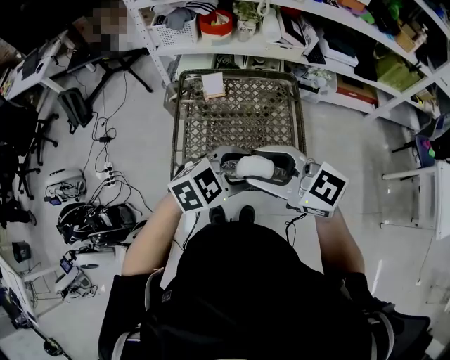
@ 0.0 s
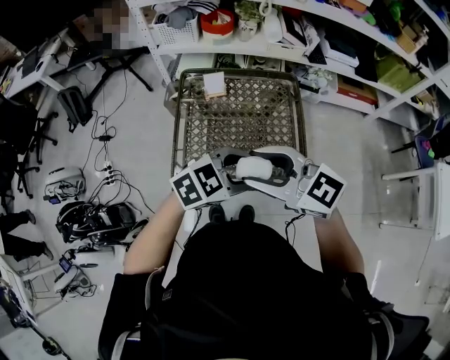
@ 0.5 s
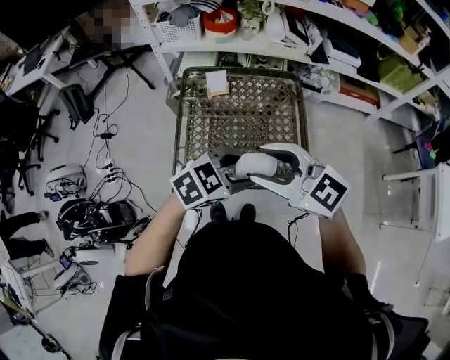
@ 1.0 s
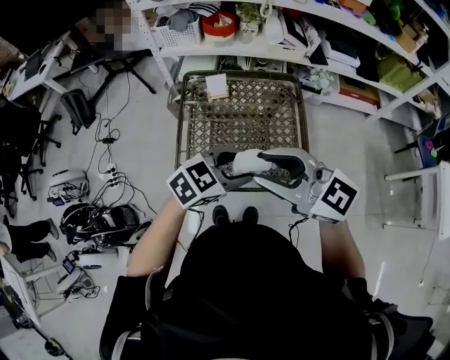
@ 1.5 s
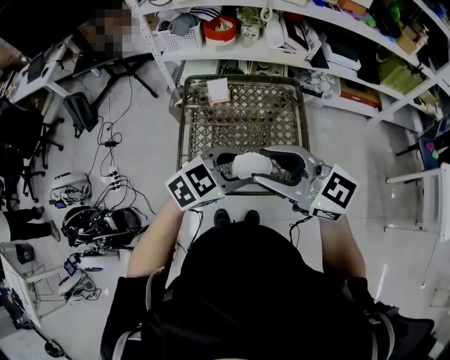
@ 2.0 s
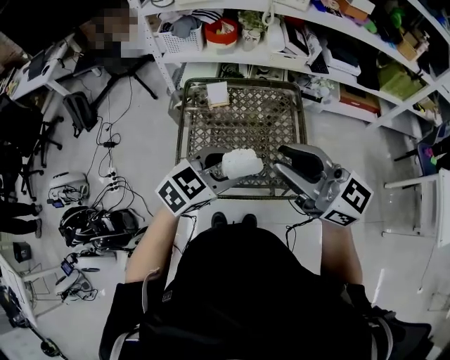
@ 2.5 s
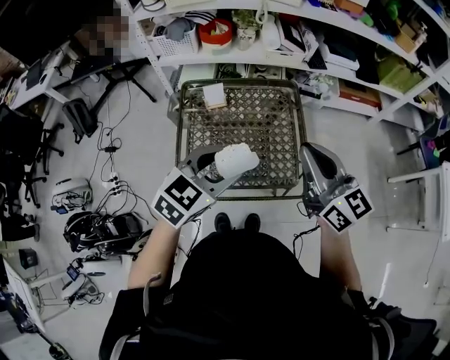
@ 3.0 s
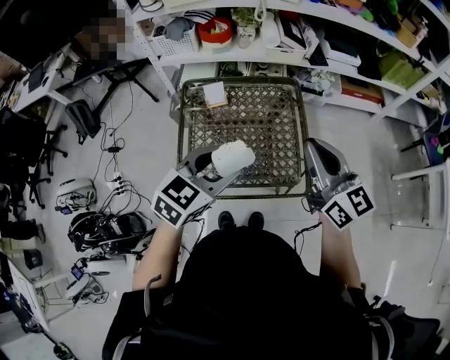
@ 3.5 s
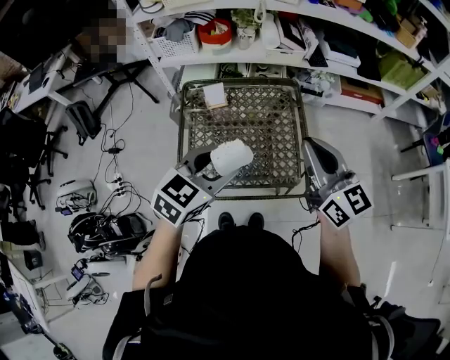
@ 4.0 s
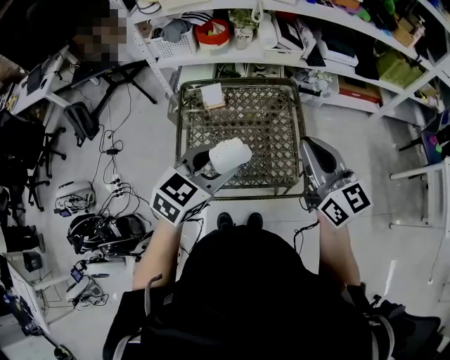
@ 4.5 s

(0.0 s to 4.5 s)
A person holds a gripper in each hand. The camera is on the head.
0.0 s - 2.0 s: The grippers move only a little.
2.0 s - 4.5 s: The left gripper changes place by approximately 5 cm. Meanwhile the right gripper moves roughly 15 cm, turns by some 40 degrees, and closes.

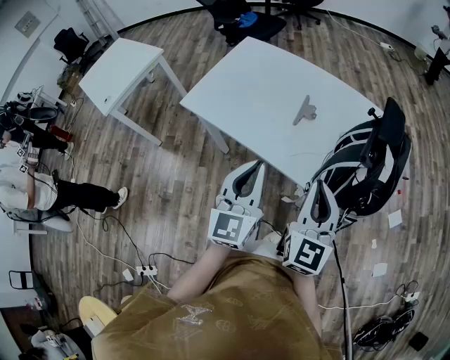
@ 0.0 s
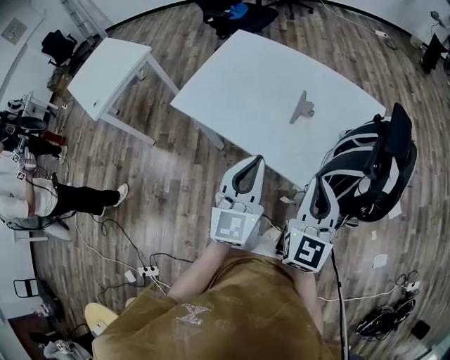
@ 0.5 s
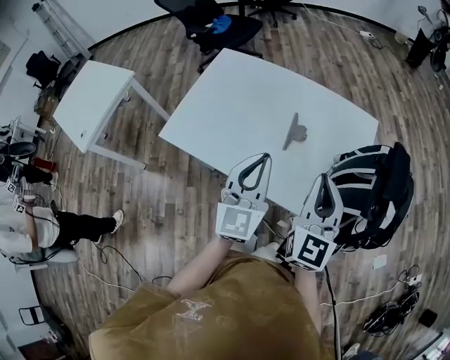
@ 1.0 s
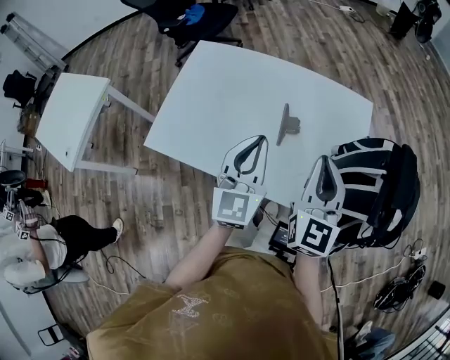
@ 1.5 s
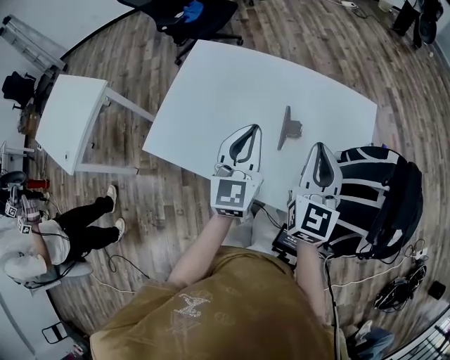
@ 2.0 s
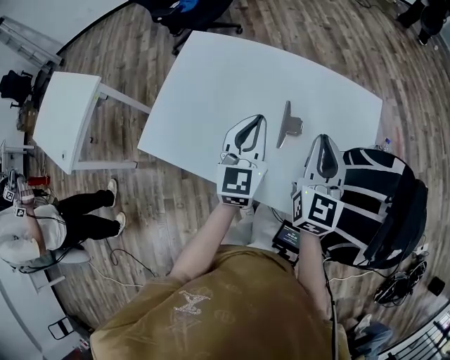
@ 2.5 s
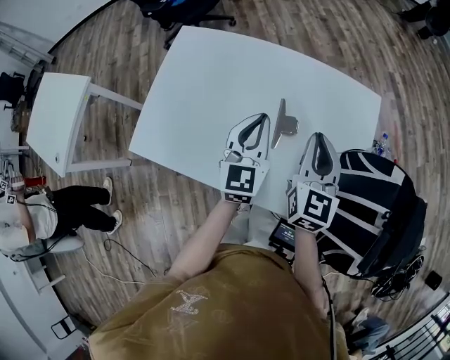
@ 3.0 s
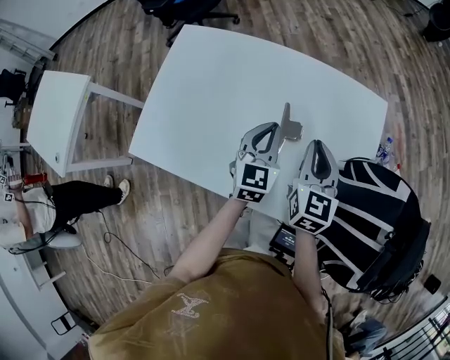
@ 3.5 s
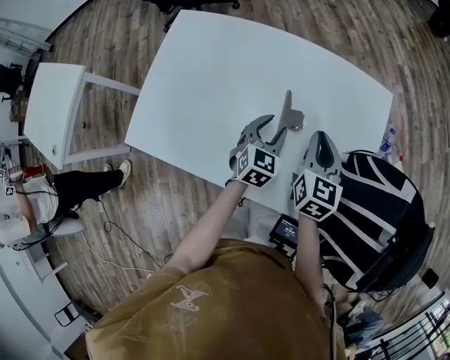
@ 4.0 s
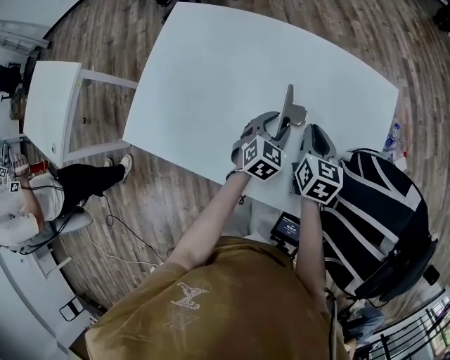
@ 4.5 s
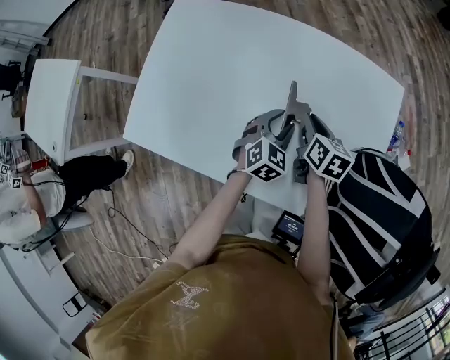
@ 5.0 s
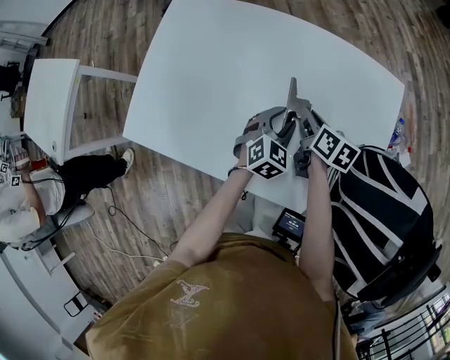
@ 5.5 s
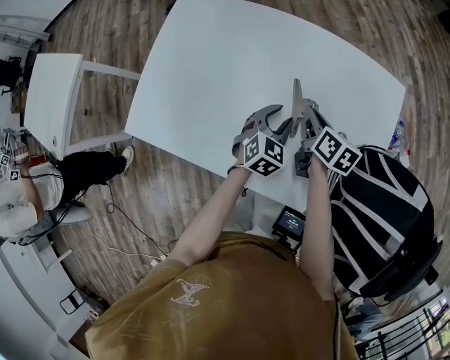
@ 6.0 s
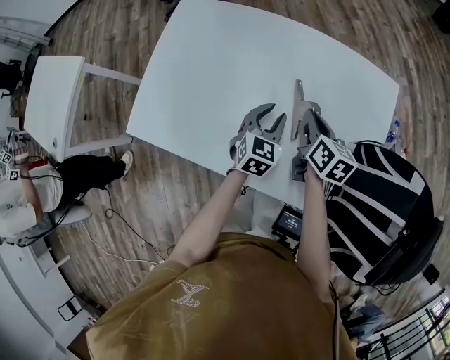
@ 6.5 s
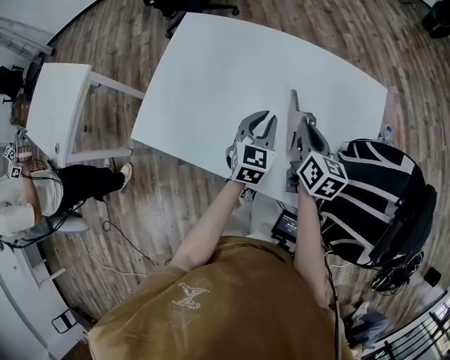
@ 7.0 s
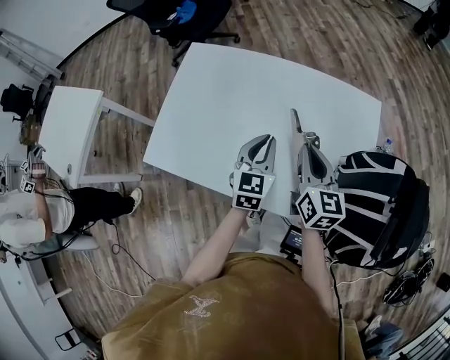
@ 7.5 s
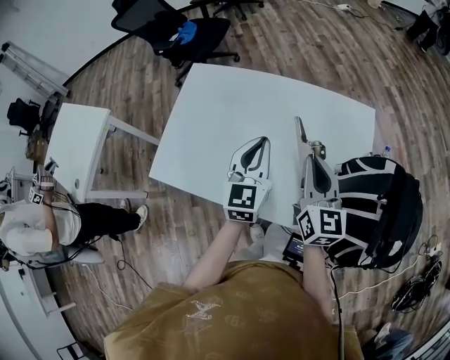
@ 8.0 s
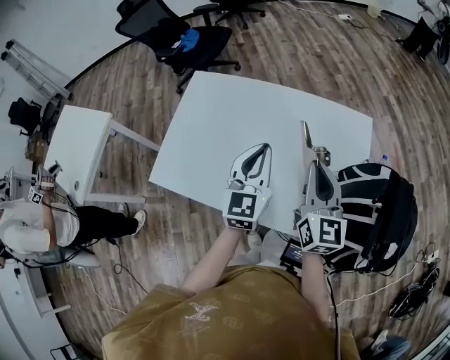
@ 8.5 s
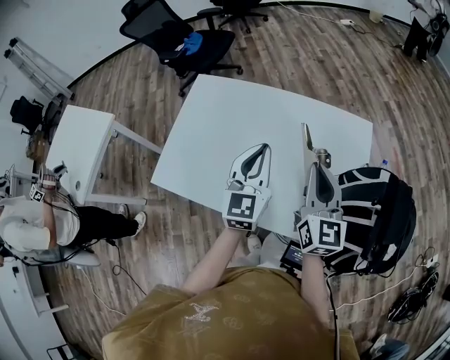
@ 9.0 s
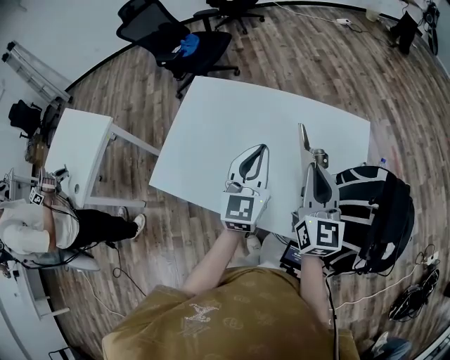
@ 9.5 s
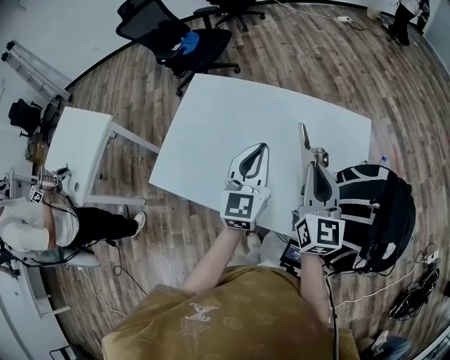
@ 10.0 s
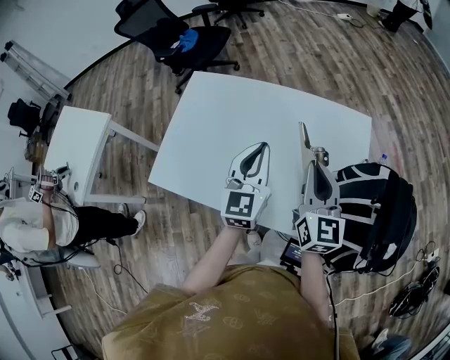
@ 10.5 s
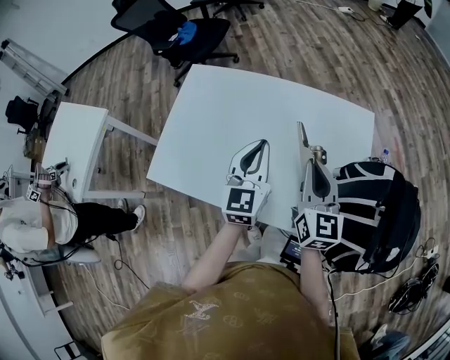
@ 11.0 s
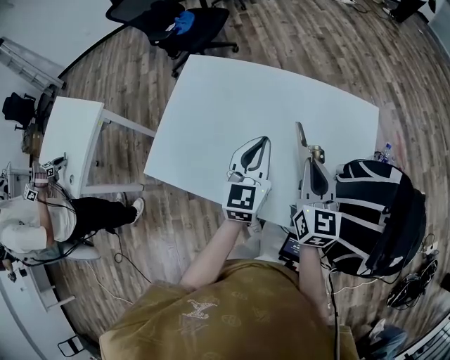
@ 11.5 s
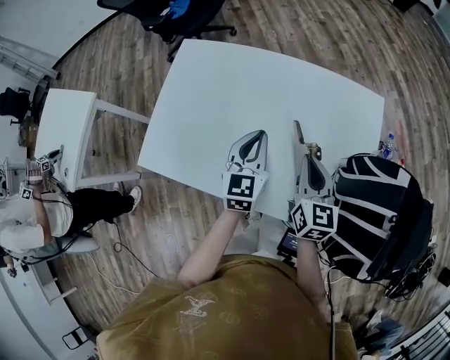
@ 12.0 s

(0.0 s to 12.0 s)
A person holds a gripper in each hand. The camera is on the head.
0.0 s - 2.0 s: The two grippers go roughly 25 cm forward.
2.0 s - 4.0 s: The left gripper shifts some 25 cm downward, rotates roughly 30 degrees, and opens up. The right gripper travels downward and forward by about 20 cm, and swivels roughly 20 degrees.
4.0 s - 6.0 s: The right gripper shifts approximately 10 cm downward, and turns by roughly 40 degrees.
6.0 s - 8.0 s: The left gripper is displaced upward by approximately 25 cm, swivels about 30 degrees, and closes its fingers. Meanwhile the right gripper goes roughly 25 cm upward and backward, and turns by roughly 40 degrees.
8.0 s - 10.0 s: The grippers stay close to where they were, moving slightly.
10.0 s - 12.0 s: Both grippers travel together downward, roughly 15 cm.

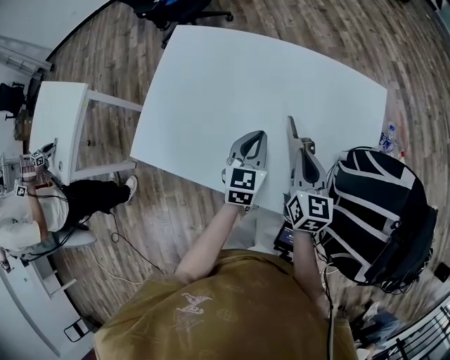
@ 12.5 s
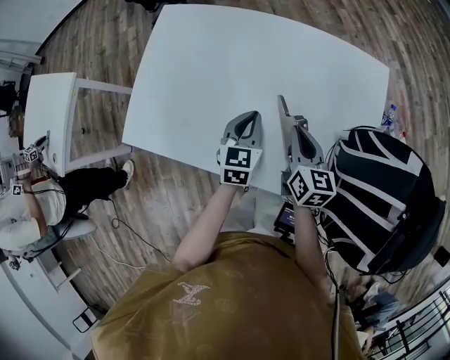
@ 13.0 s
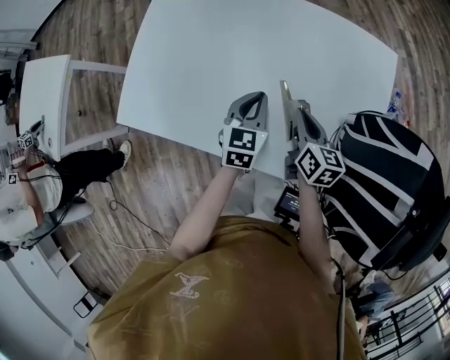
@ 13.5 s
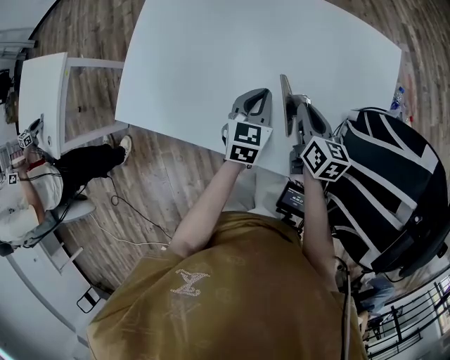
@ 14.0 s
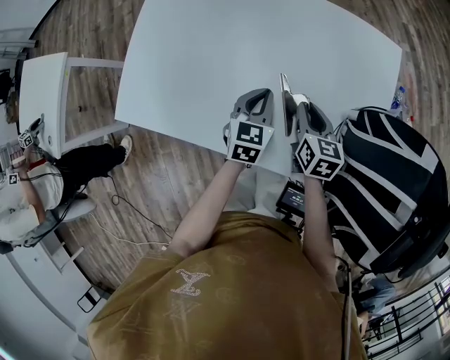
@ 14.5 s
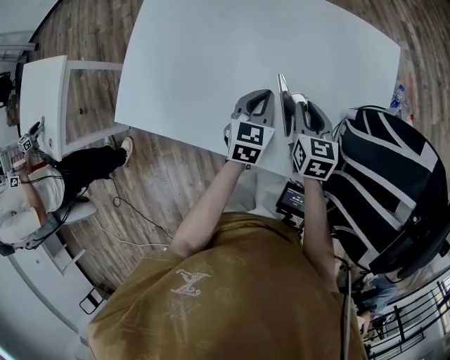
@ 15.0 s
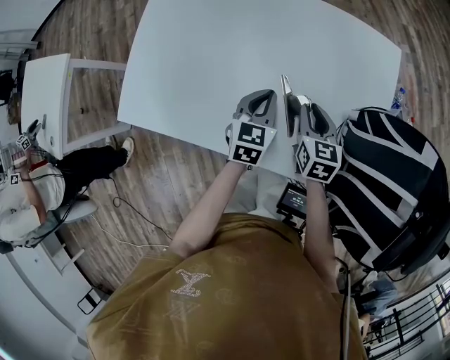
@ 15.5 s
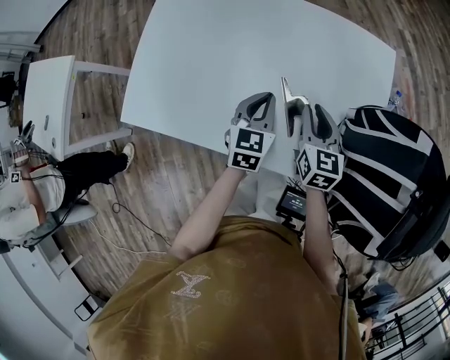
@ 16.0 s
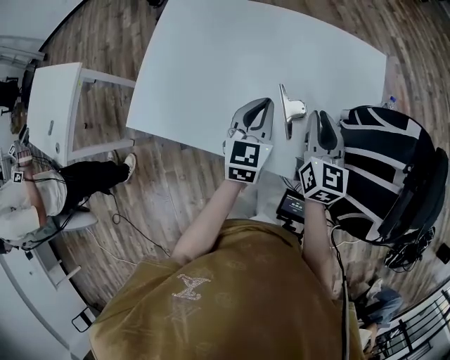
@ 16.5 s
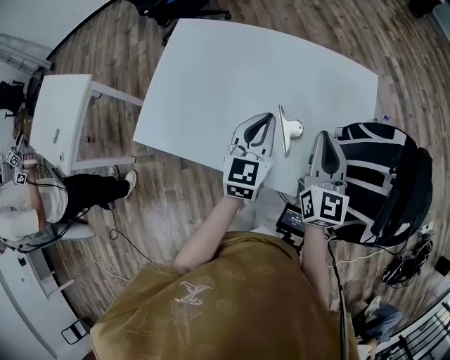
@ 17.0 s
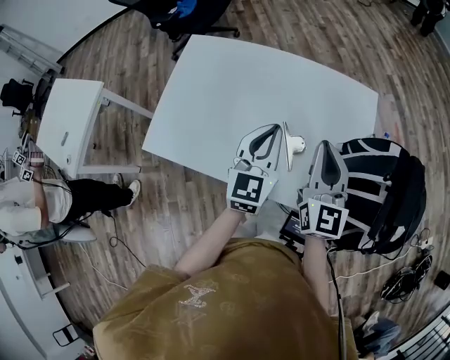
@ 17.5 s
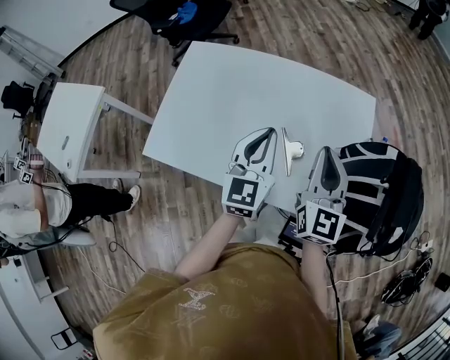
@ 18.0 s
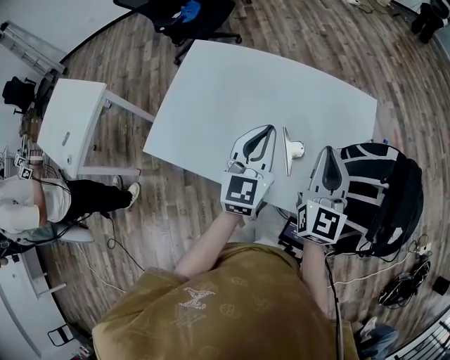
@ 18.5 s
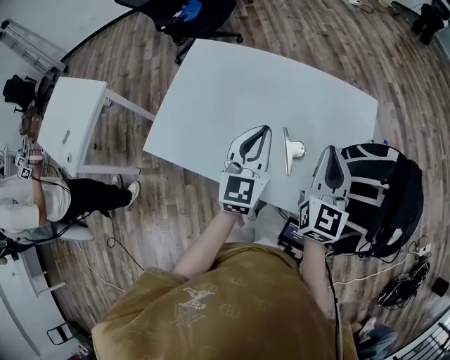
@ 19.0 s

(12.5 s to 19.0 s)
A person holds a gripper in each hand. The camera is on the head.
12.5 s - 14.5 s: The right gripper shifts some 10 cm downward. The left gripper shifts roughly 5 cm downward.
14.5 s - 17.0 s: The two grippers go roughly 20 cm upward. The right gripper changes its angle by about 30 degrees.
17.0 s - 19.0 s: Both grippers move upward, about 5 cm.

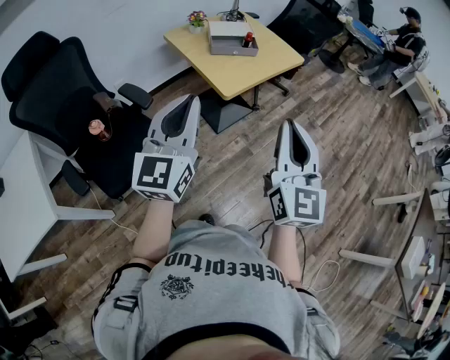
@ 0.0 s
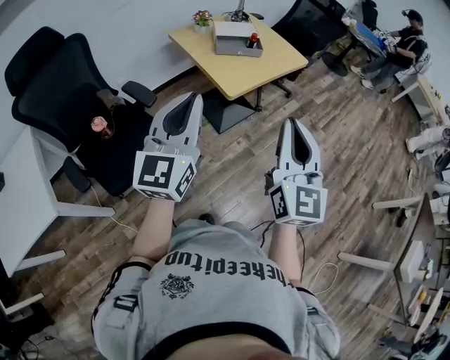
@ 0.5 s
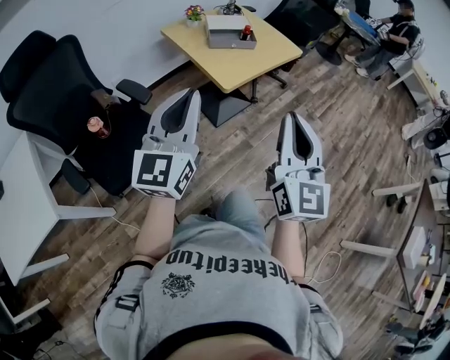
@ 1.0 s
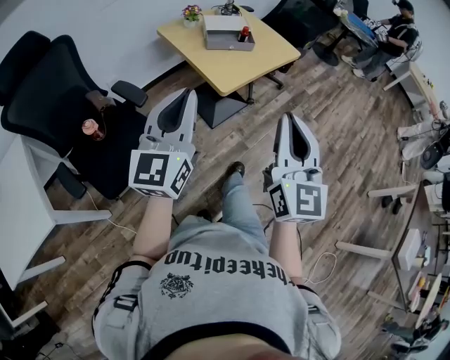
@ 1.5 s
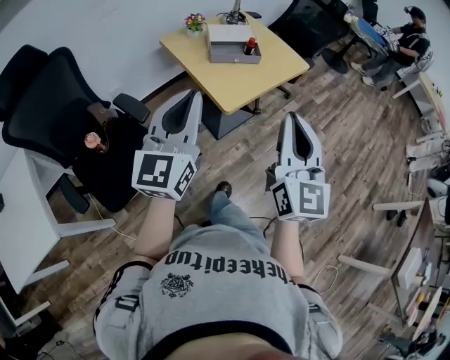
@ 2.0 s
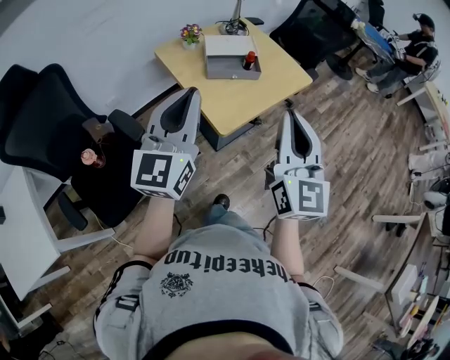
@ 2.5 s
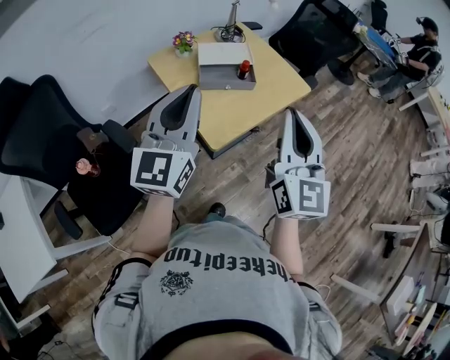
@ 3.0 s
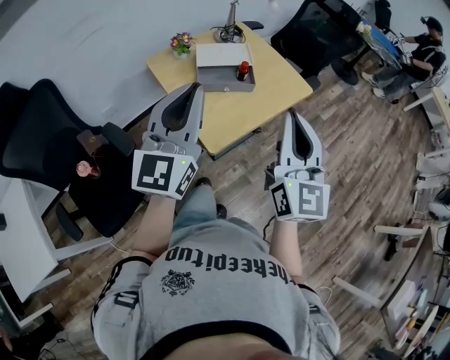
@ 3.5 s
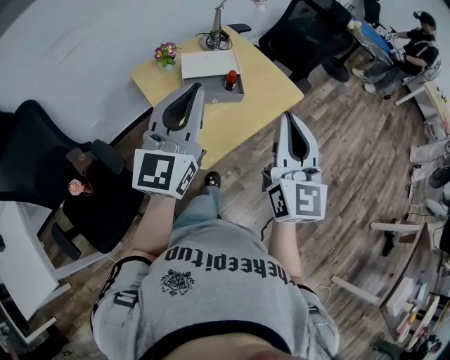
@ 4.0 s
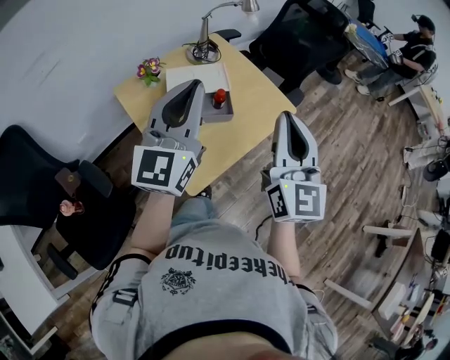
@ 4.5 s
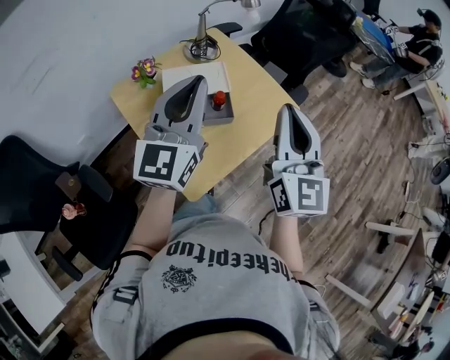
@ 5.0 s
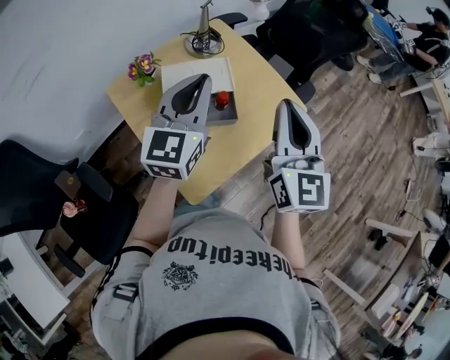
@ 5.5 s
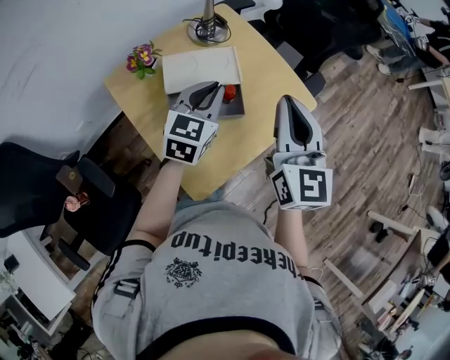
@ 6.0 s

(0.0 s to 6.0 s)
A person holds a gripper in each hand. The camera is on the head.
0.0 s - 2.0 s: Both grippers travel together forward, approximately 10 cm.
2.0 s - 4.0 s: The two grippers go approximately 25 cm forward.
4.0 s - 6.0 s: The right gripper travels forward by approximately 25 cm. The left gripper travels forward and downward by some 35 cm, and points its fingers roughly 30 degrees further downward.
